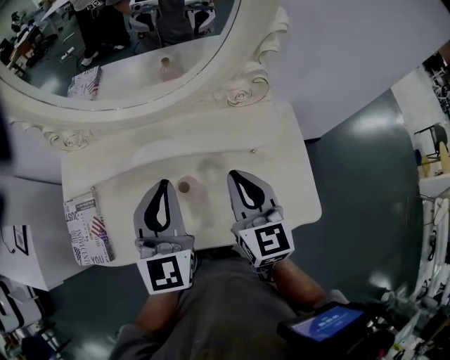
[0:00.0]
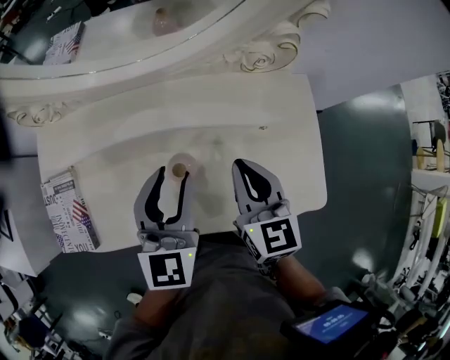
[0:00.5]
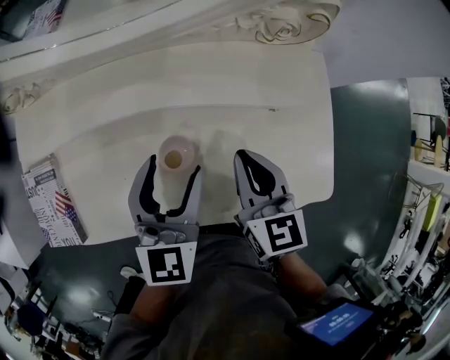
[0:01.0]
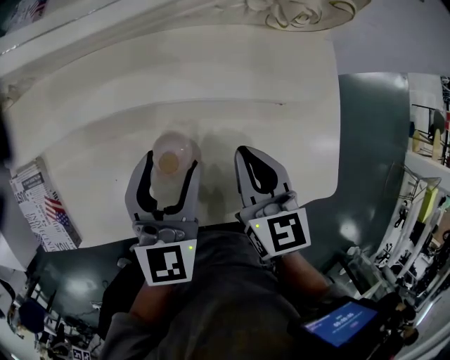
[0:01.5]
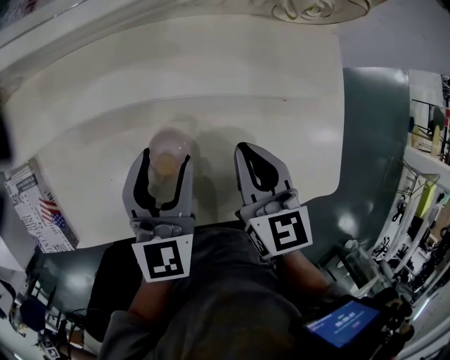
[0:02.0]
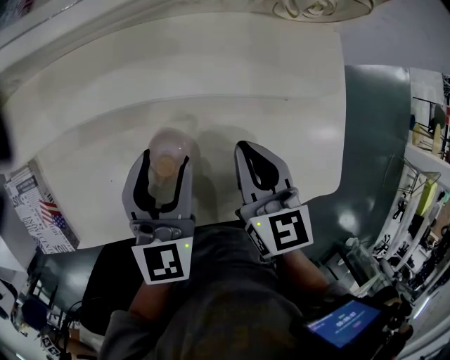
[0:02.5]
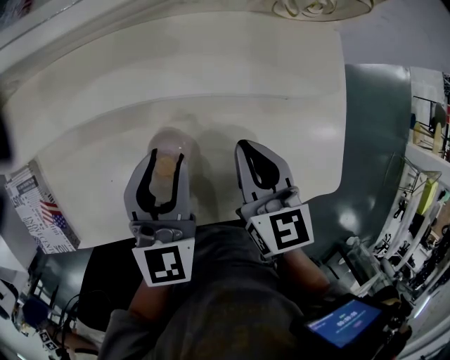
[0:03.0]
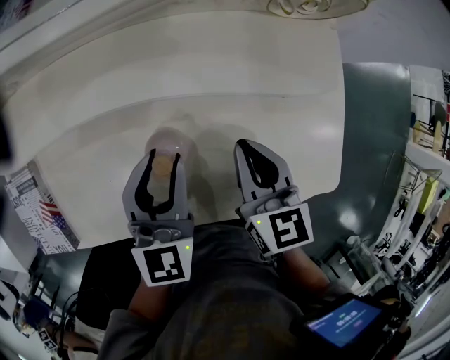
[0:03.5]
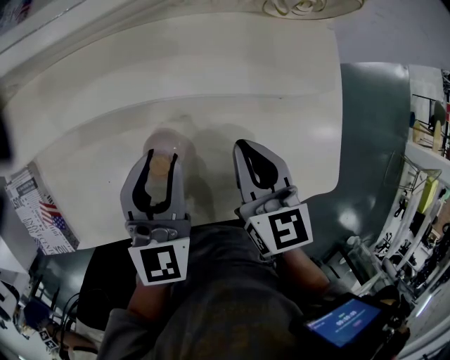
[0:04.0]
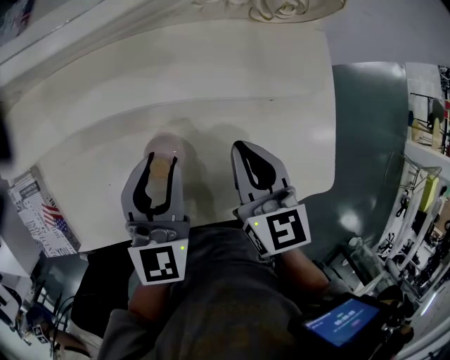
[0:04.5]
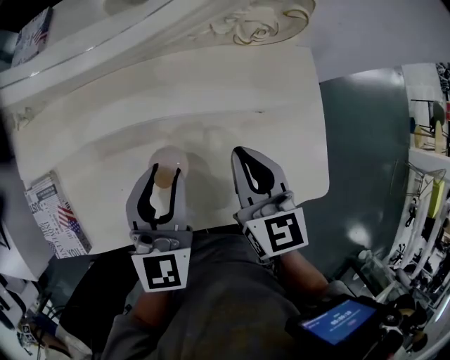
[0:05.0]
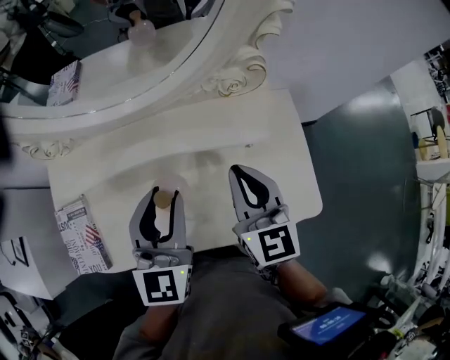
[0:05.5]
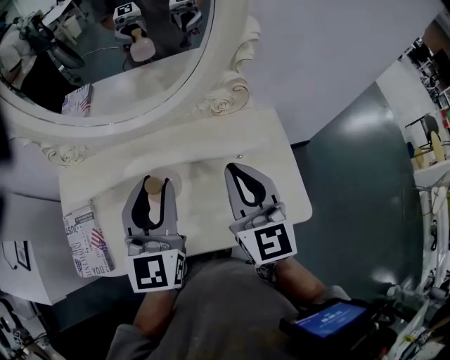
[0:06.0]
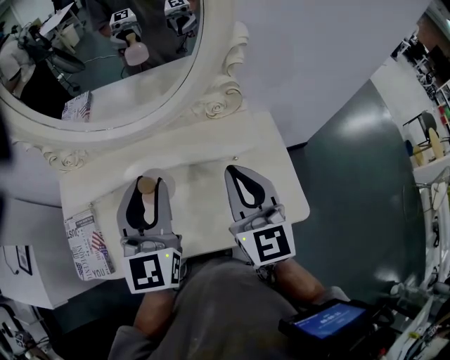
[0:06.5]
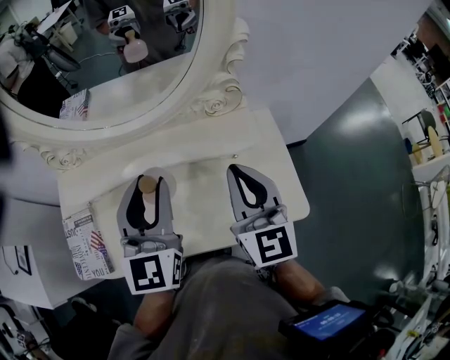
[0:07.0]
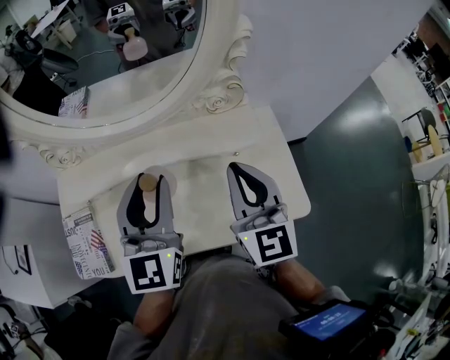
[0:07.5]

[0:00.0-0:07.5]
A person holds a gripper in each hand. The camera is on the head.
0:00.0 to 0:02.0: The two grippers go roughly 20 cm downward. The right gripper changes its angle by roughly 20 degrees; the left gripper swivels approximately 20 degrees, and opens up.
0:02.0 to 0:04.0: The left gripper closes its fingers.
0:04.0 to 0:05.5: The grippers both shift upward by about 15 cm. The right gripper swivels some 20 degrees.
0:05.5 to 0:07.5: The two grippers go roughly 10 cm upward.

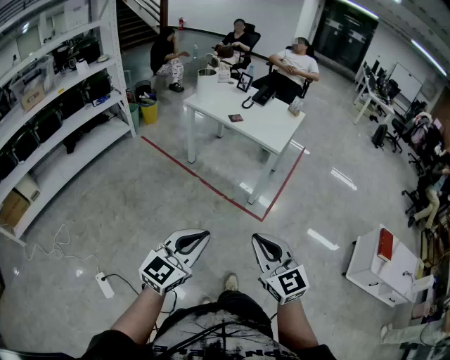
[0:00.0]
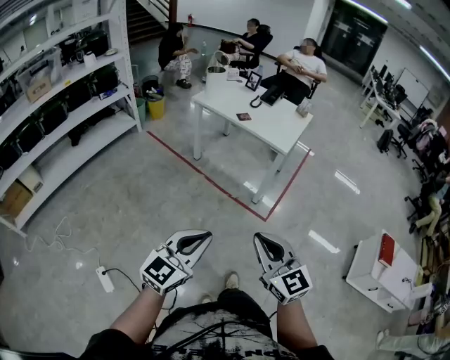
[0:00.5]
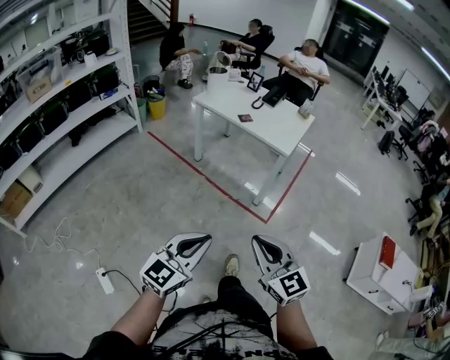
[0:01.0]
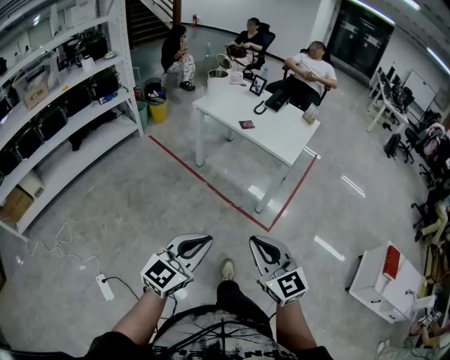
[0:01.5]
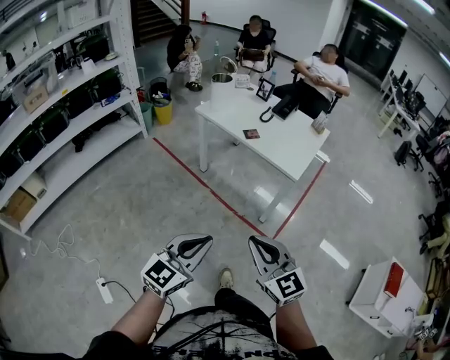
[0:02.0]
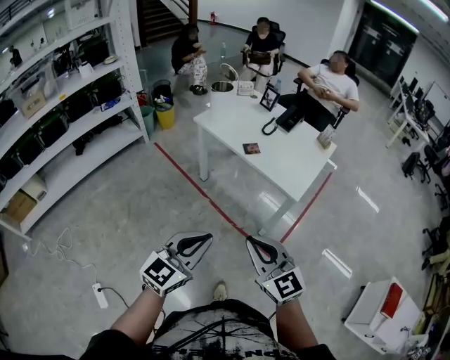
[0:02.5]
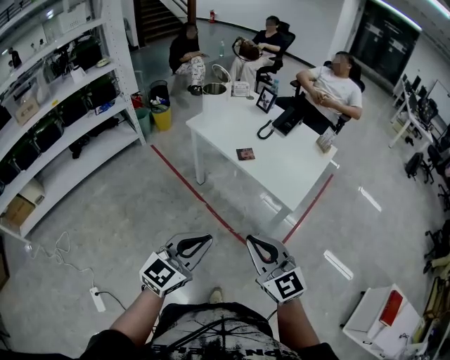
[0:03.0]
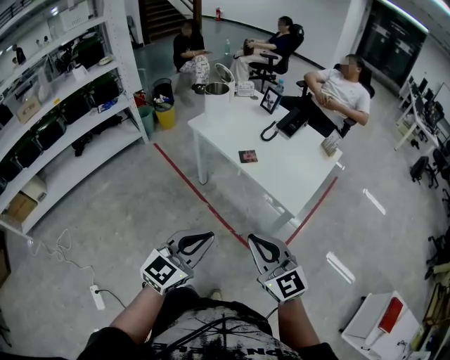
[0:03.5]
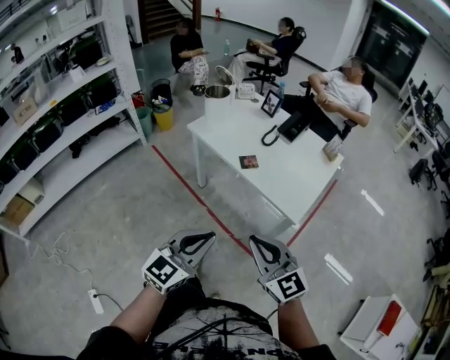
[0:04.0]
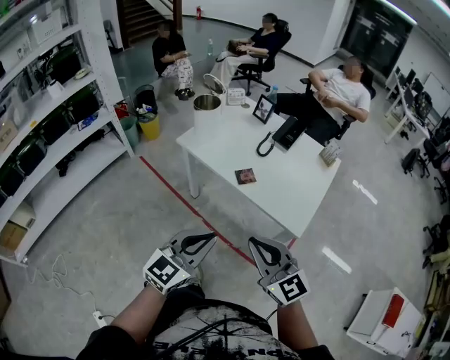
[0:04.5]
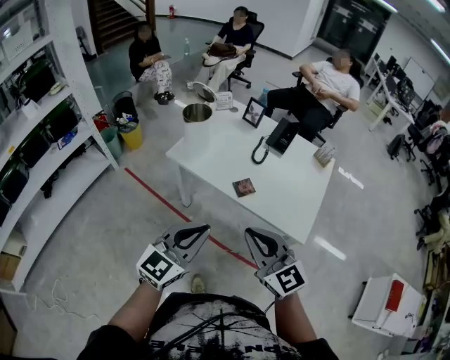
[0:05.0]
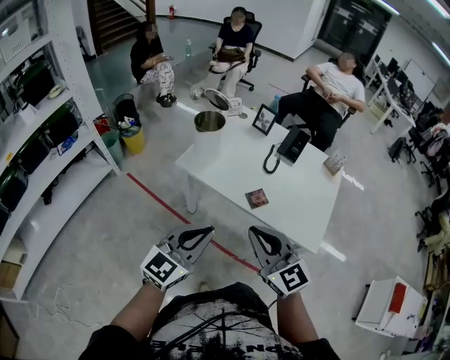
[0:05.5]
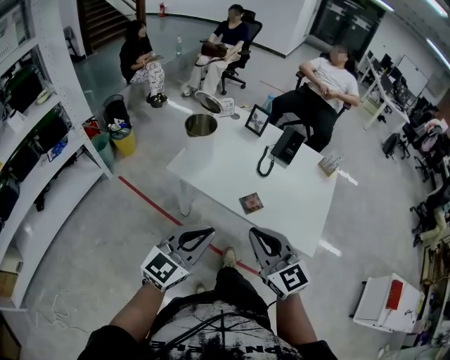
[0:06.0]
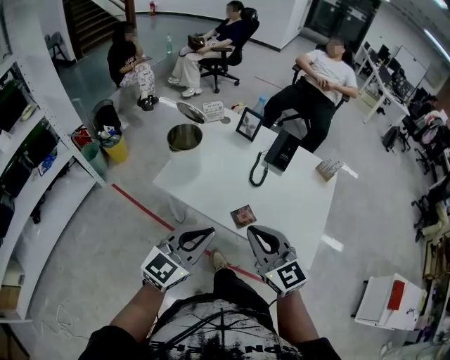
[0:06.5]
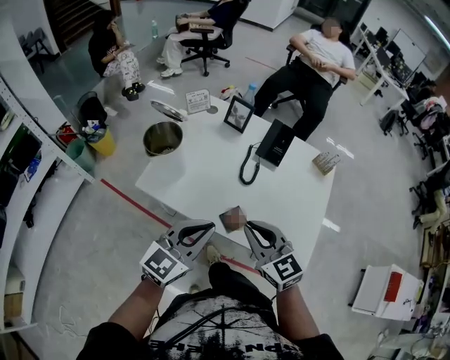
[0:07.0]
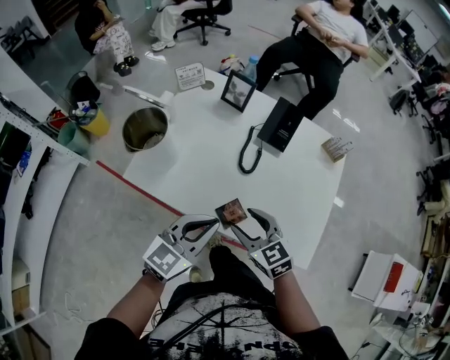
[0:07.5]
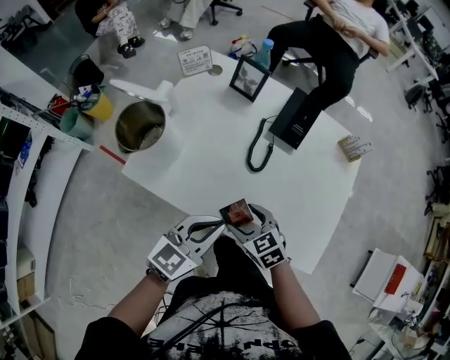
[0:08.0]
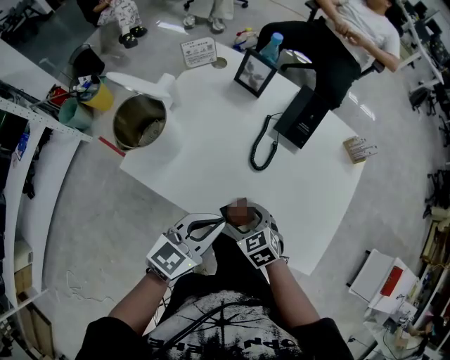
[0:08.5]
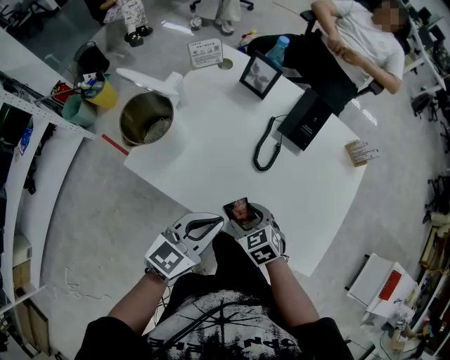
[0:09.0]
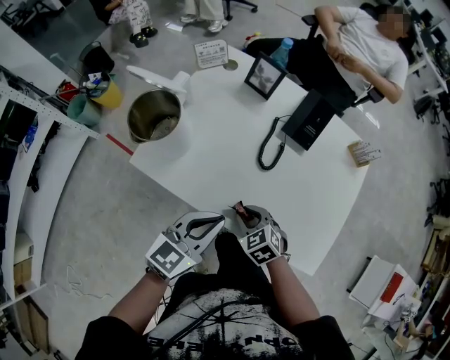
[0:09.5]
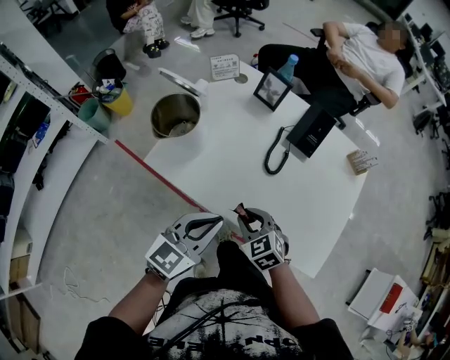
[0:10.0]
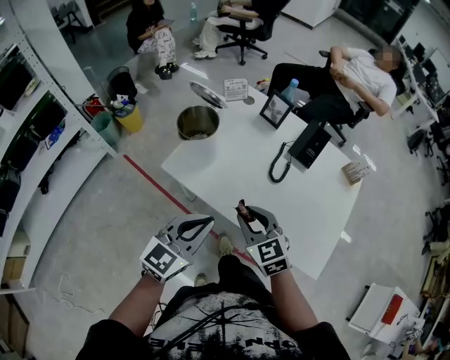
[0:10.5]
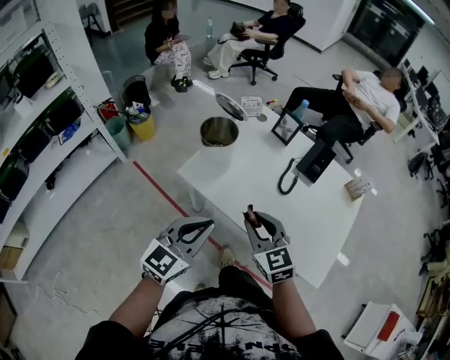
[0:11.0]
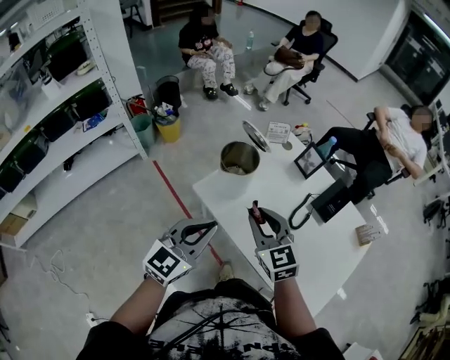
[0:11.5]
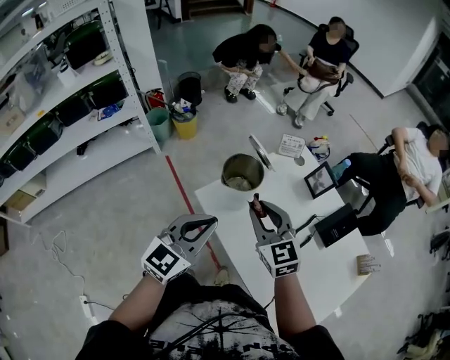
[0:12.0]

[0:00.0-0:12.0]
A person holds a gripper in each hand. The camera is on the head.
0:00.0 to 0:02.0: Both grippers travel together forward, approximately 20 cm.
0:02.0 to 0:04.0: Both grippers travel together forward, some 25 cm.
0:04.0 to 0:06.0: The grippers both shift forward and to the left by approximately 30 cm.
0:06.0 to 0:08.0: The right gripper heads downward and forward, covering some 35 cm, tilts its fingers about 40 degrees downward, and opens up, while the left gripper is displaced forward, downward and to the right by approximately 25 cm, and rotates about 20 degrees.
0:08.0 to 0:10.0: The left gripper is displaced to the left by approximately 5 cm. The right gripper closes its fingers.
0:10.0 to 0:12.0: The left gripper shifts roughly 15 cm to the left, upward and forward, and turns by some 30 degrees, while the right gripper travels upward, forward and to the left by about 30 cm, and tips its fingers upward by approximately 30 degrees.

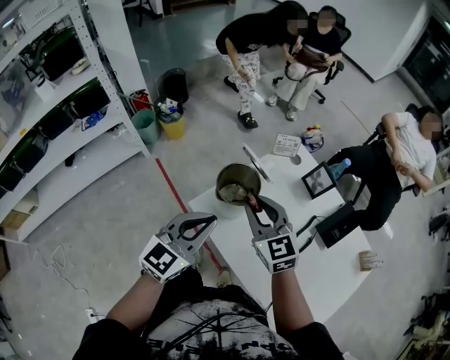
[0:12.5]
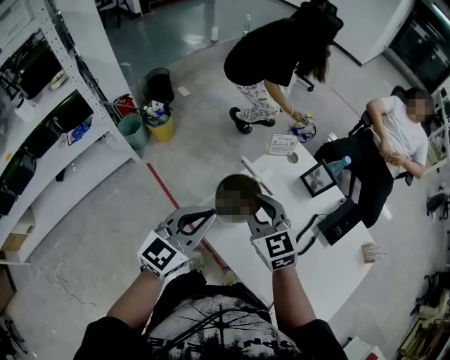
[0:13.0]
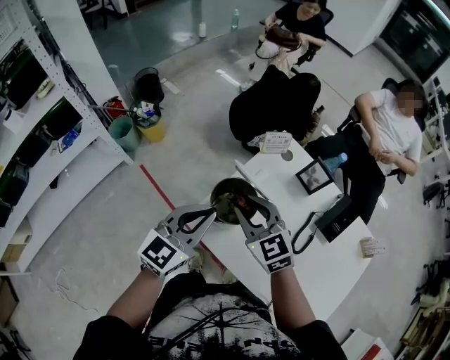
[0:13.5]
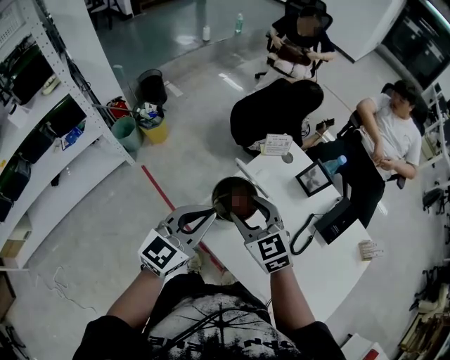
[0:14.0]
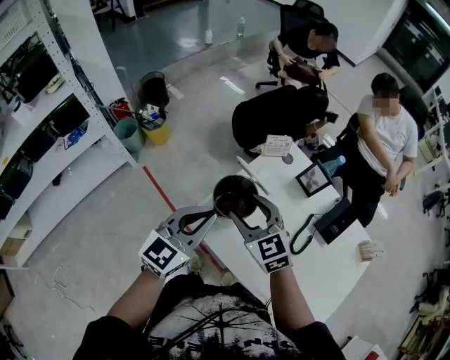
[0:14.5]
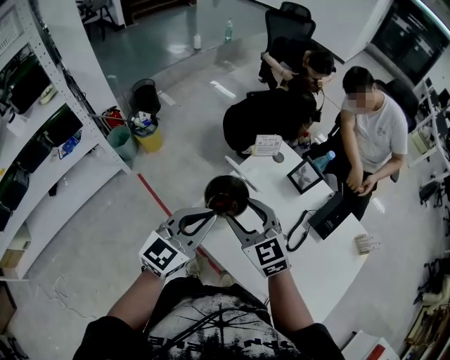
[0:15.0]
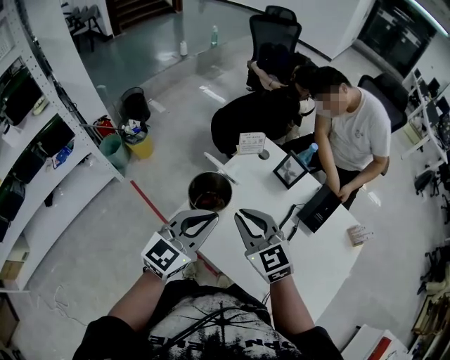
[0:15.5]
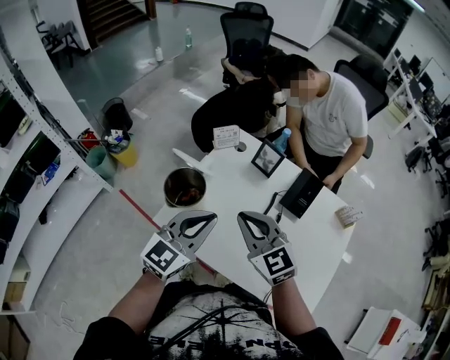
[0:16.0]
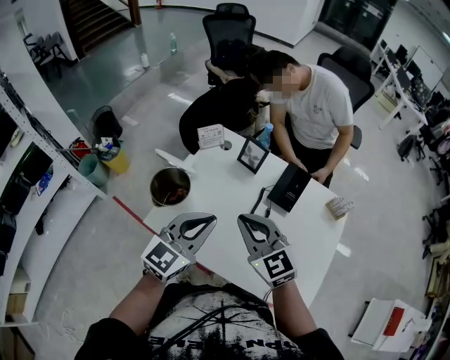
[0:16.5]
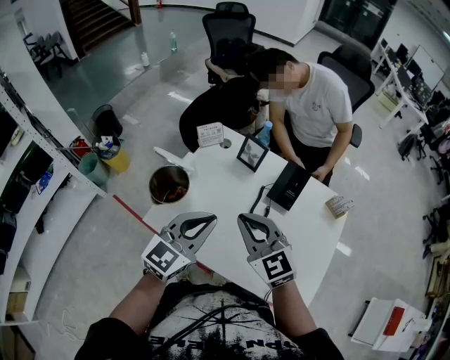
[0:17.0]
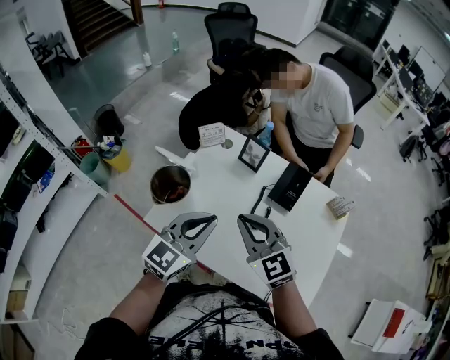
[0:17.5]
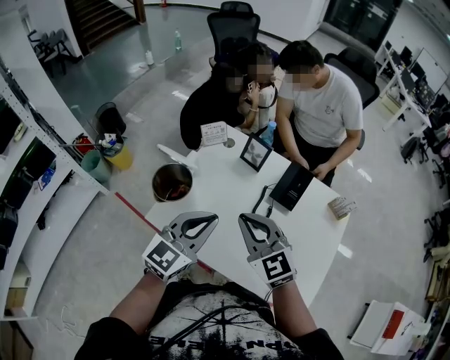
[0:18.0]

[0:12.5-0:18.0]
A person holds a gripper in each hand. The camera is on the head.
0:12.5 to 0:14.5: The left gripper shifts some 5 cm forward. The right gripper opens up.
0:14.5 to 0:16.0: The right gripper shifts some 15 cm to the right and backward, and closes up. The left gripper moves to the right, roughly 15 cm.
0:16.0 to 0:18.0: The grippers move only a little.

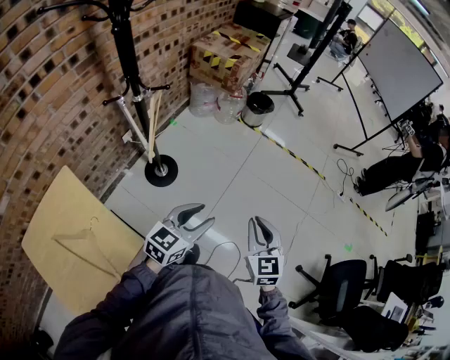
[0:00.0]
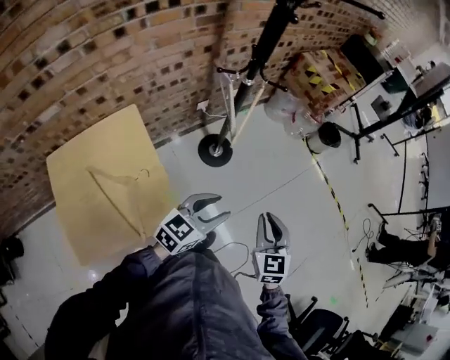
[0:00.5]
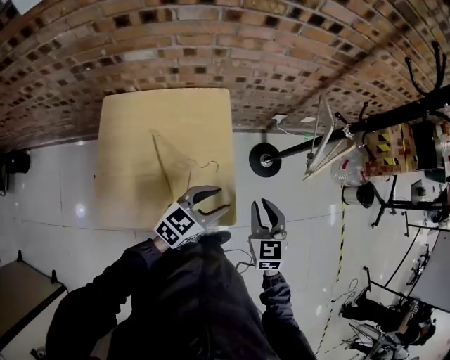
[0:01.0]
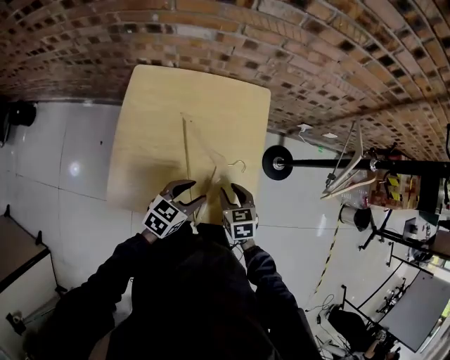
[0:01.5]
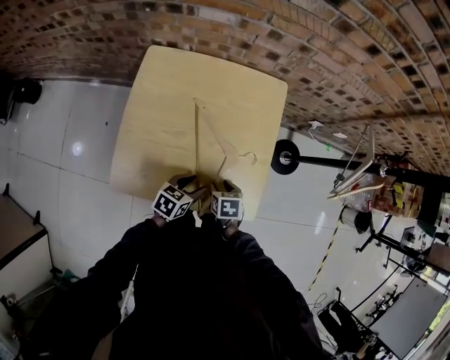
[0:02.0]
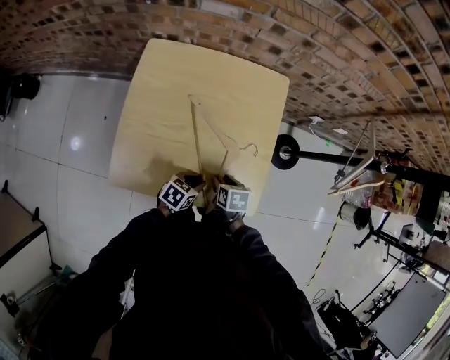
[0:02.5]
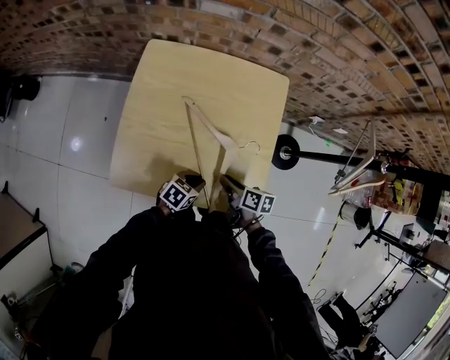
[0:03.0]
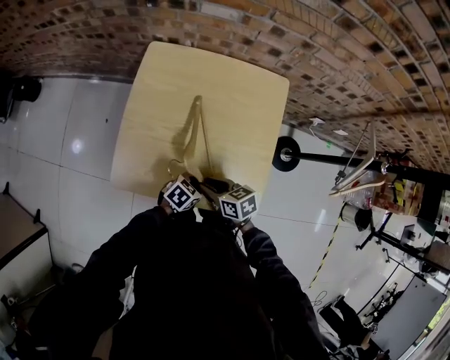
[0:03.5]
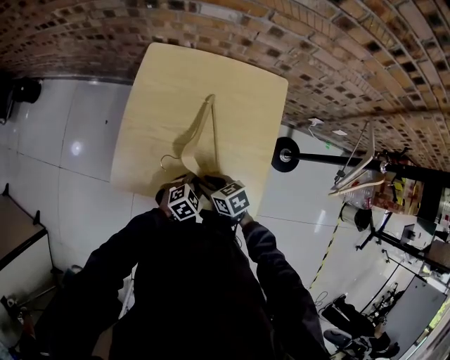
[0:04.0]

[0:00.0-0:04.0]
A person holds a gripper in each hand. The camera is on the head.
0:00.0 to 0:02.0: The two grippers travel together, some 50 cm. The left gripper changes its angle by approximately 70 degrees. Meanwhile the right gripper tilts its fingers approximately 40 degrees downward, and opens.
0:02.0 to 0:04.0: The right gripper ends up some 10 cm from where it was, and turns by about 30 degrees; the left gripper moves approximately 5 cm, rotates about 40 degrees, and closes its fingers.
